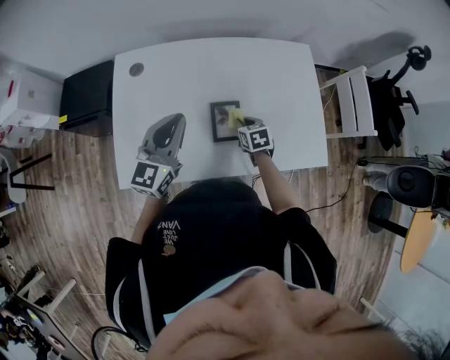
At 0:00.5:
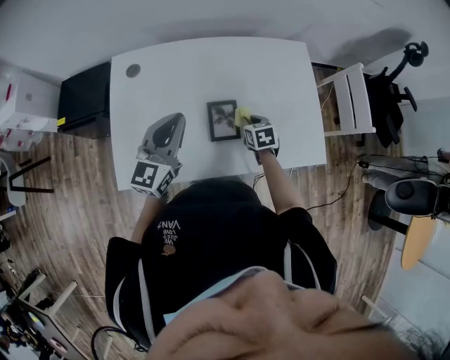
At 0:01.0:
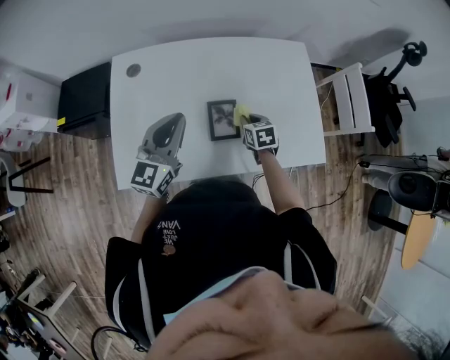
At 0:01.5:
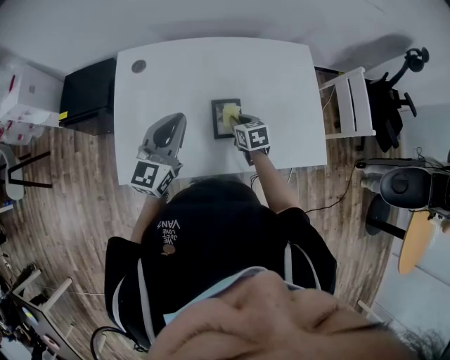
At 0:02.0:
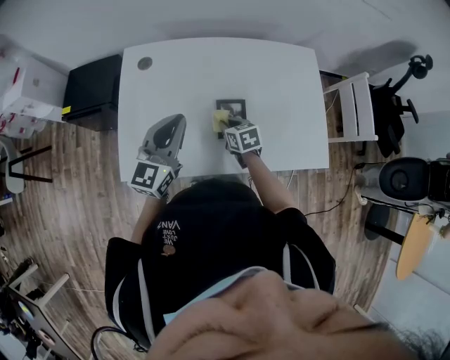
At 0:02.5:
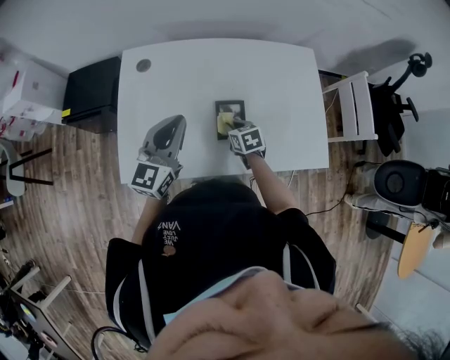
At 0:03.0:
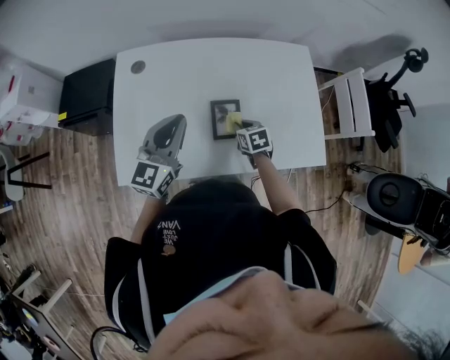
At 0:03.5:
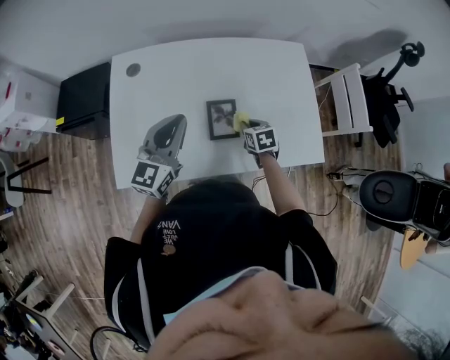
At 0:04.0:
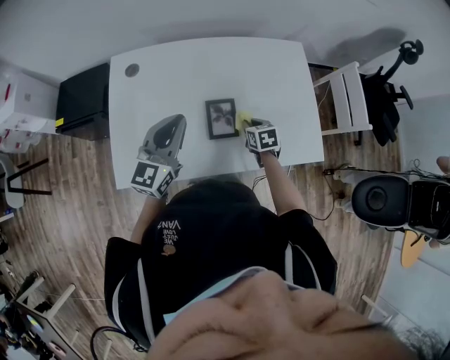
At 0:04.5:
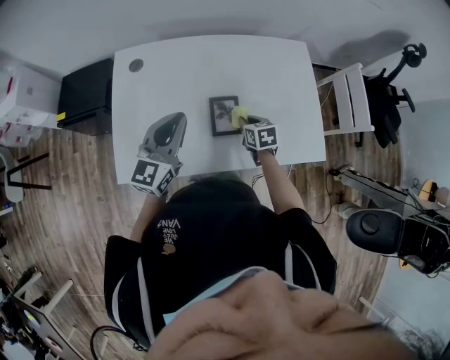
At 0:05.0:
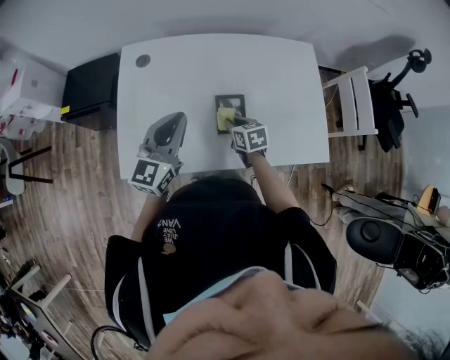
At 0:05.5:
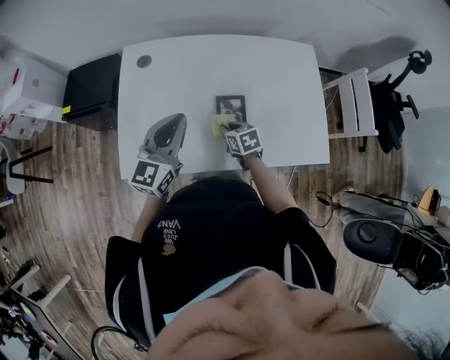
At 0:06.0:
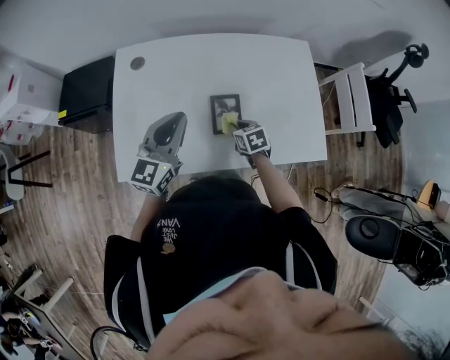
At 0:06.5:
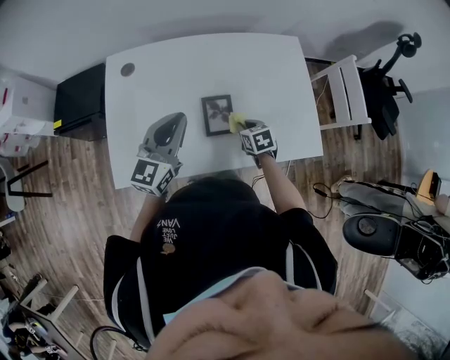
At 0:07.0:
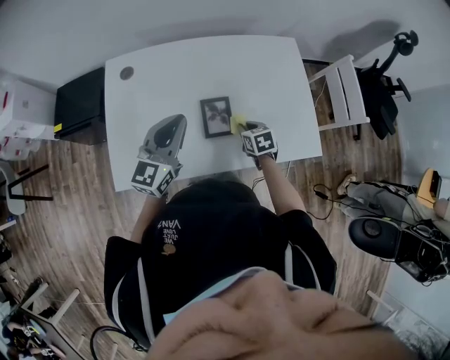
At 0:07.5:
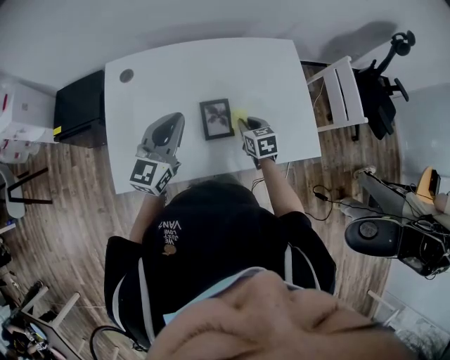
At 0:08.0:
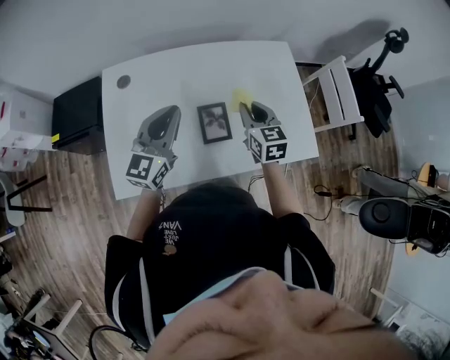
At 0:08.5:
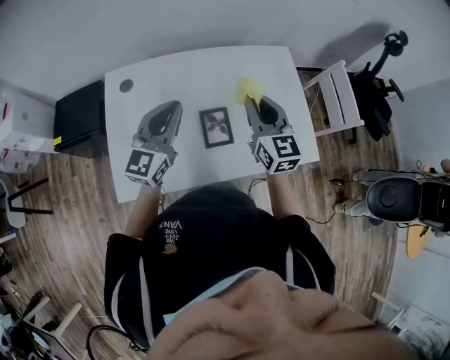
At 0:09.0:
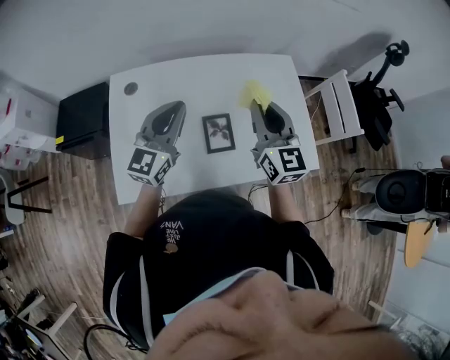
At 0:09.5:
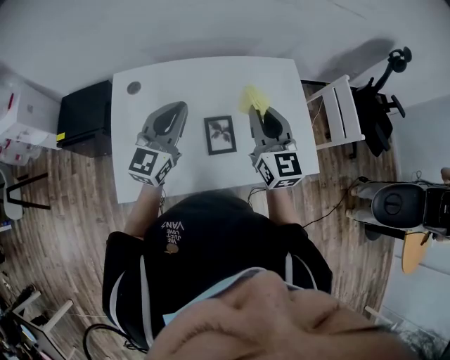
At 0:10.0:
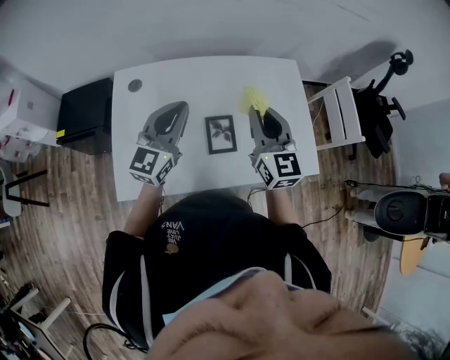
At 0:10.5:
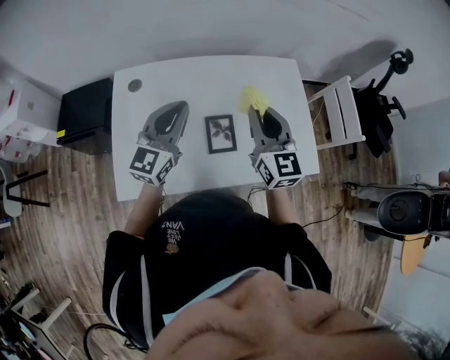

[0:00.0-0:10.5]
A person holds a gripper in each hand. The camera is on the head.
0:00.0 to 0:02.0: The right gripper shifts some 10 cm to the left.
0:02.0 to 0:04.0: The right gripper is displaced to the right by about 15 cm.
0:04.0 to 0:06.5: The right gripper goes to the left and returns, roughly 15 cm each way.
0:06.5 to 0:08.5: The right gripper goes some 30 cm upward, and points its fingers approximately 50 degrees further upward. Meanwhile the left gripper moves some 5 cm.
0:08.5 to 0:10.5: The grippers move only a little.

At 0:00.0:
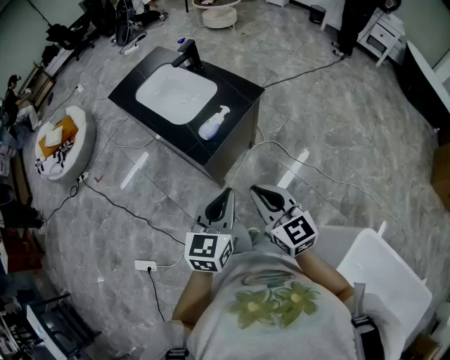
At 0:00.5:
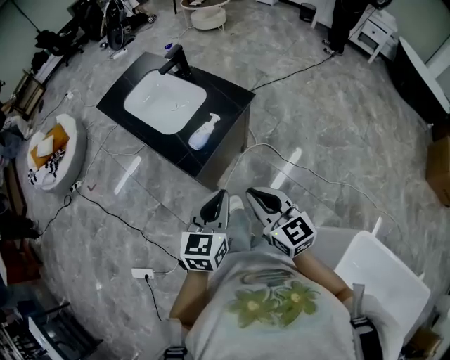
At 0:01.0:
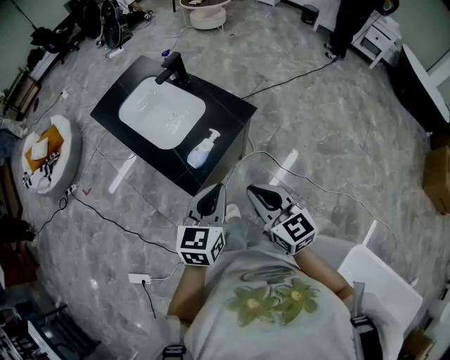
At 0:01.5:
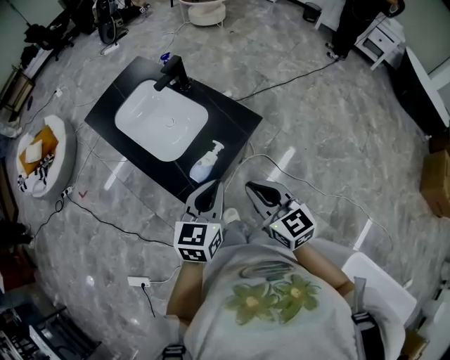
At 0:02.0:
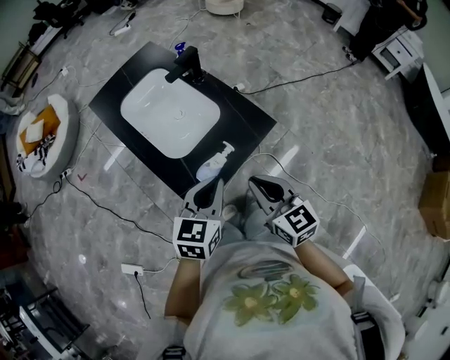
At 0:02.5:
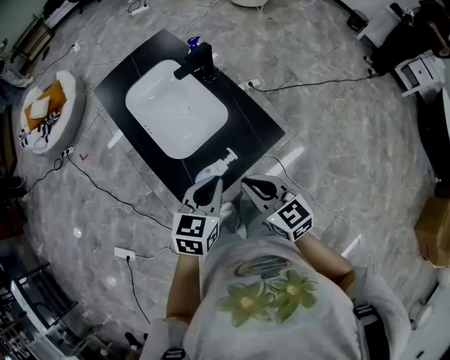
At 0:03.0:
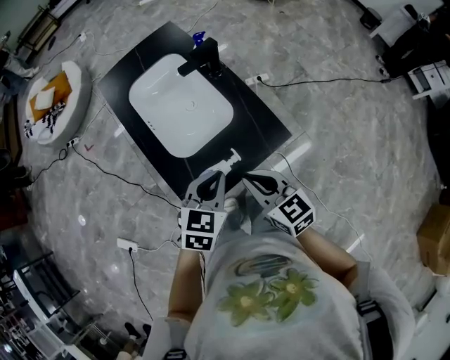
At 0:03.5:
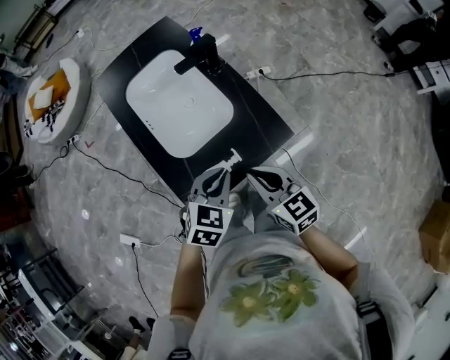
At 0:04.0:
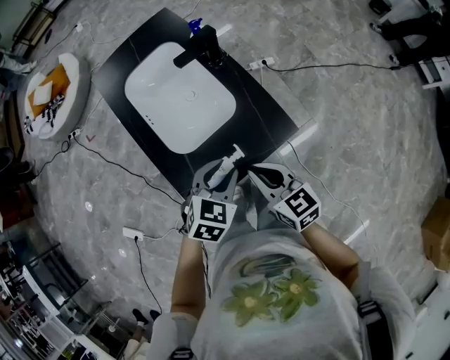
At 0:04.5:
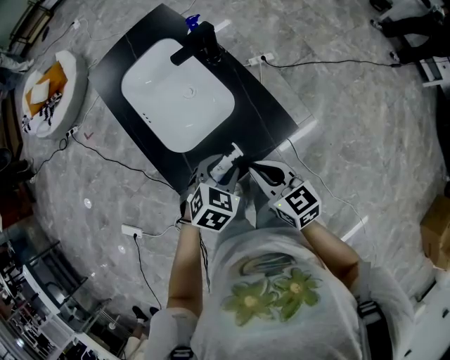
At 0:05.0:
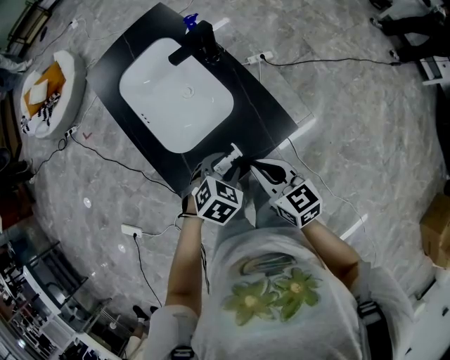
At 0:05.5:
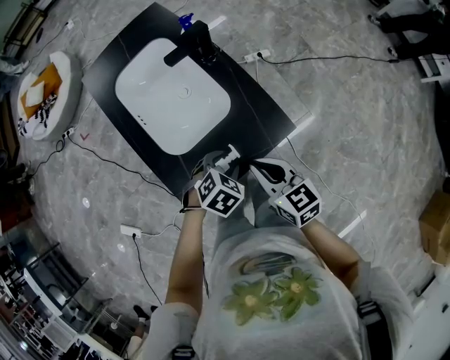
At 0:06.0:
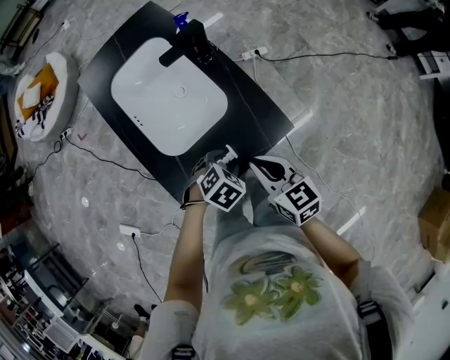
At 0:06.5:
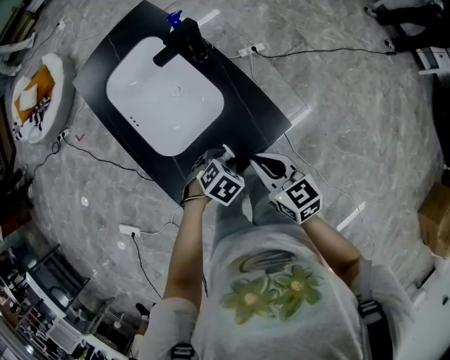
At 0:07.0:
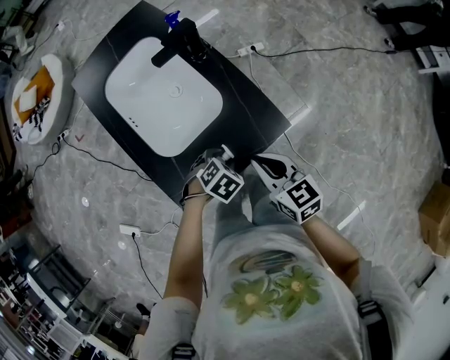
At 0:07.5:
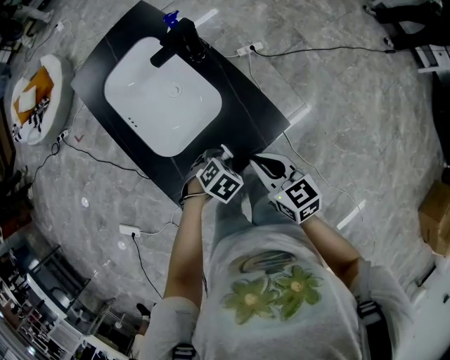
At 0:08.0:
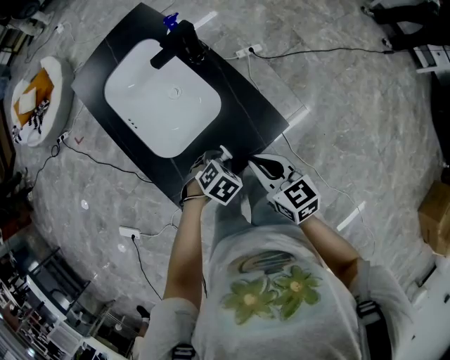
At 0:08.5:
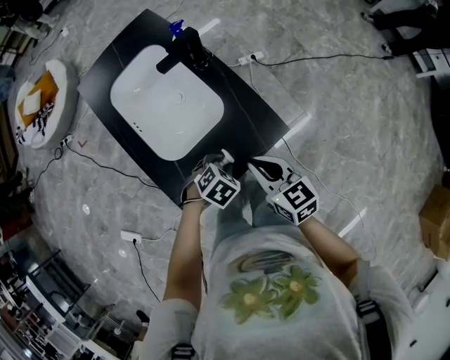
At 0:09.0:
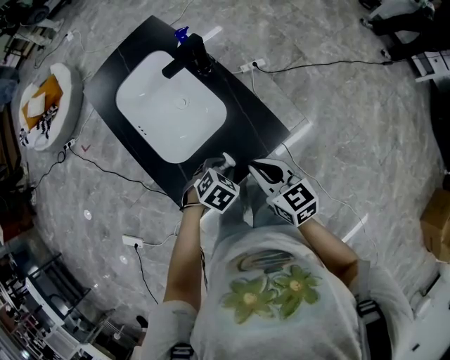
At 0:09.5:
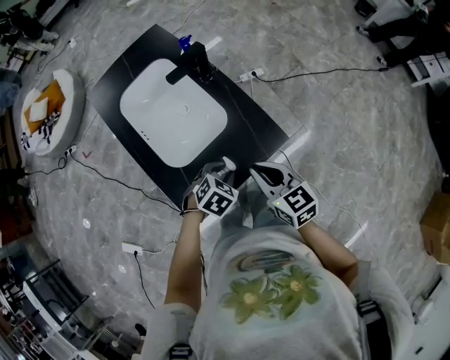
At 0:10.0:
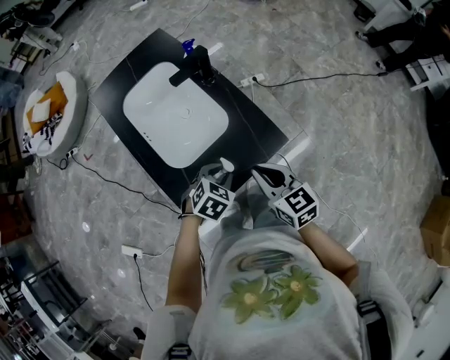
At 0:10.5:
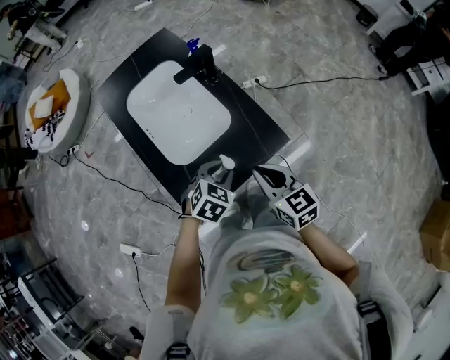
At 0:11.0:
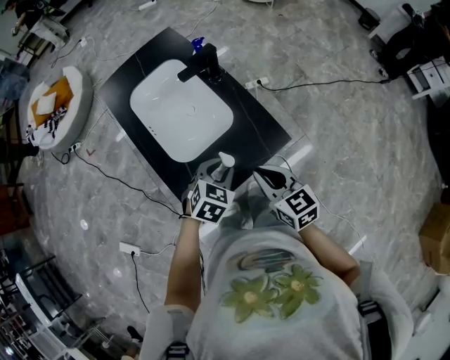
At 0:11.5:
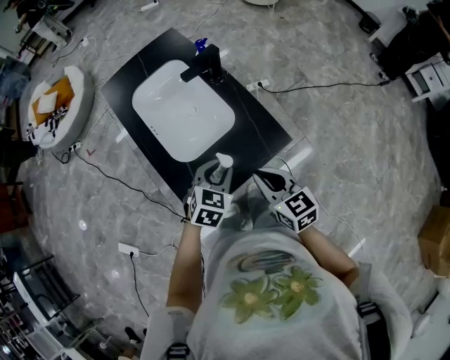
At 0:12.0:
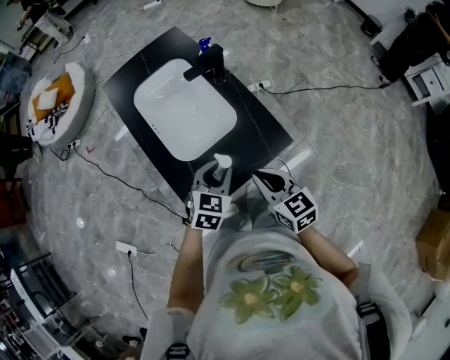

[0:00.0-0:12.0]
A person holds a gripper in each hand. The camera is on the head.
0:00.0 to 0:02.0: The two grippers go roughly 30 cm forward.
0:02.0 to 0:04.0: The left gripper moves forward, downward and to the right, some 15 cm, swivels roughly 20 degrees, and opens up. Meanwhile the right gripper is displaced forward and downward by roughly 15 cm, and rotates roughly 20 degrees.
0:04.0 to 0:06.0: The left gripper moves downward, about 10 cm, and swivels roughly 30 degrees.
0:06.0 to 0:08.0: The grippers stay close to where they were, moving slightly.
0:08.0 to 0:10.0: The right gripper ends up approximately 5 cm from where it was. The left gripper shifts some 10 cm upward.
0:10.0 to 0:12.0: The left gripper shifts approximately 5 cm upward, and changes its angle by approximately 30 degrees.

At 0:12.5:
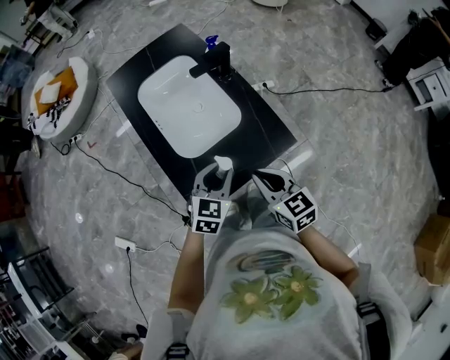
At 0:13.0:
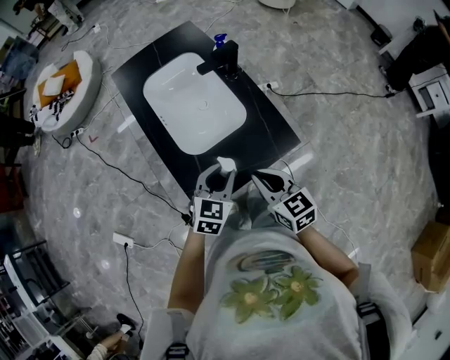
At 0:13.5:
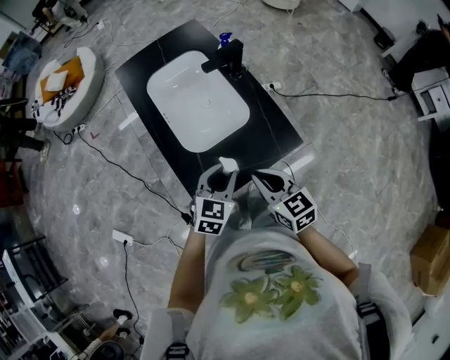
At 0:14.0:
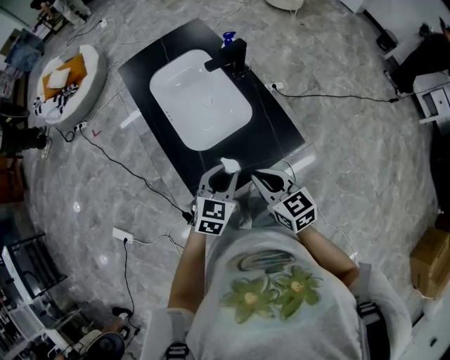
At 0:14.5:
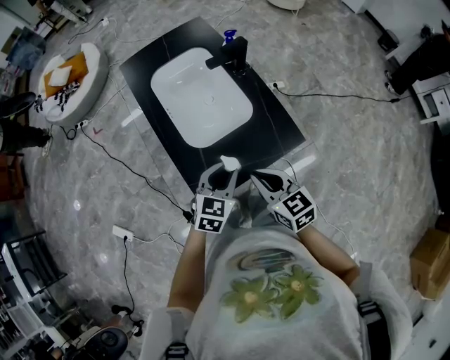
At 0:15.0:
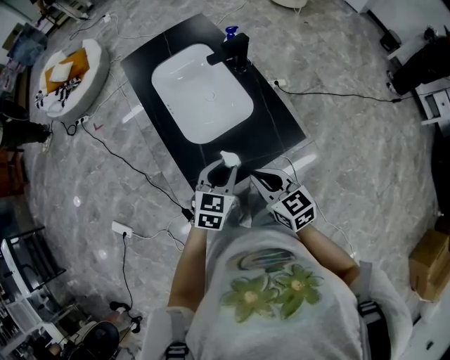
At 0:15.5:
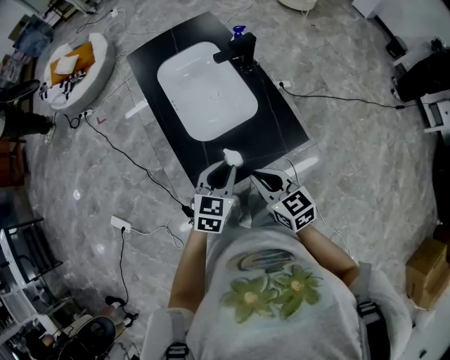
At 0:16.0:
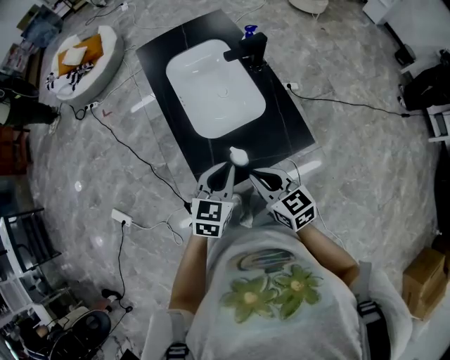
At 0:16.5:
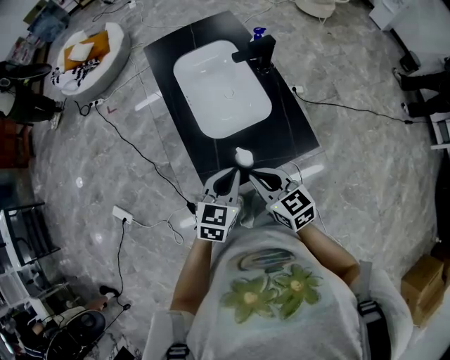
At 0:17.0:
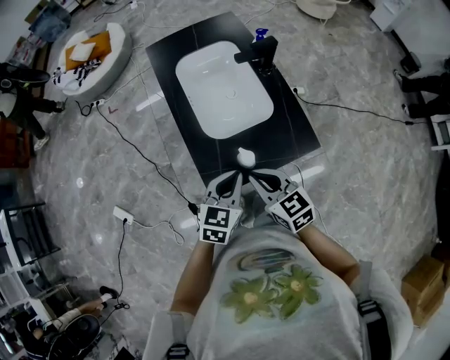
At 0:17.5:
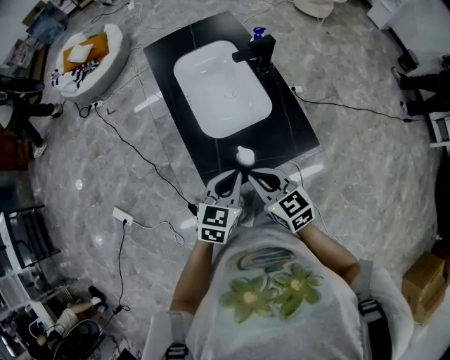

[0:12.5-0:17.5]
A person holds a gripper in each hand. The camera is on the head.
0:12.5 to 0:15.0: The grippers move only a little.
0:15.0 to 0:17.5: The right gripper shifts about 5 cm to the left. Meanwhile the left gripper changes place by some 5 cm, and closes.
